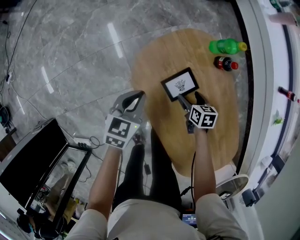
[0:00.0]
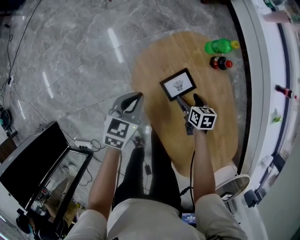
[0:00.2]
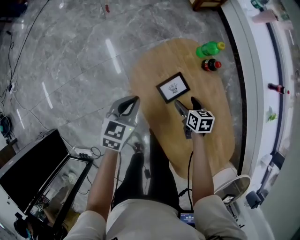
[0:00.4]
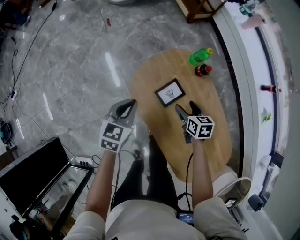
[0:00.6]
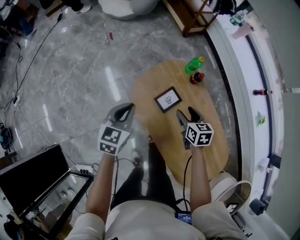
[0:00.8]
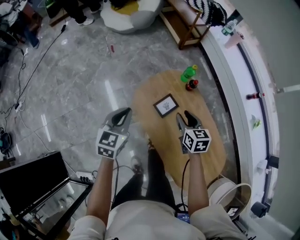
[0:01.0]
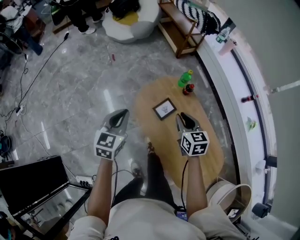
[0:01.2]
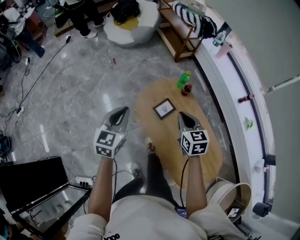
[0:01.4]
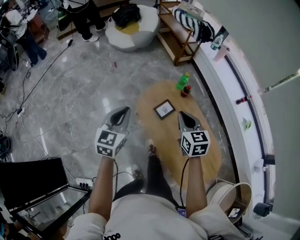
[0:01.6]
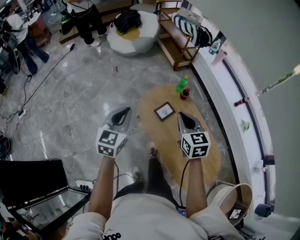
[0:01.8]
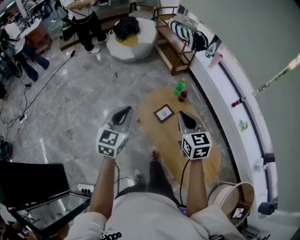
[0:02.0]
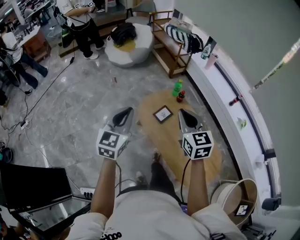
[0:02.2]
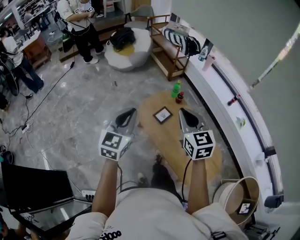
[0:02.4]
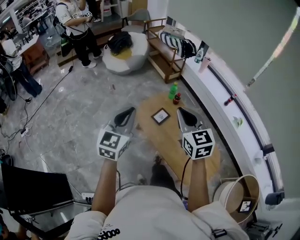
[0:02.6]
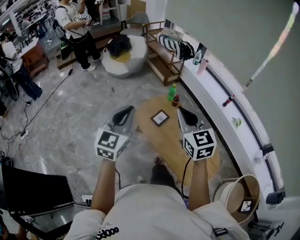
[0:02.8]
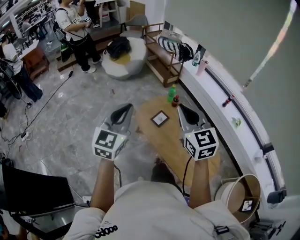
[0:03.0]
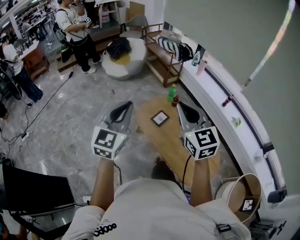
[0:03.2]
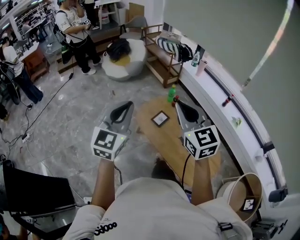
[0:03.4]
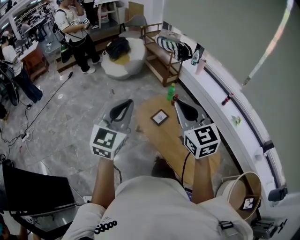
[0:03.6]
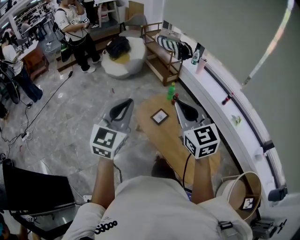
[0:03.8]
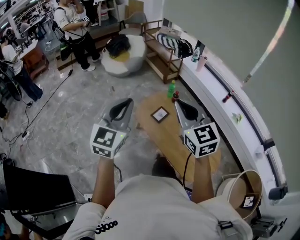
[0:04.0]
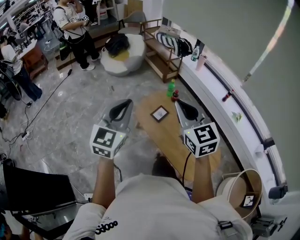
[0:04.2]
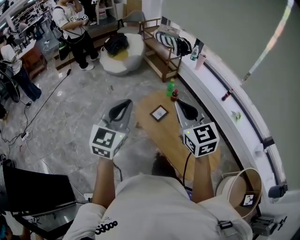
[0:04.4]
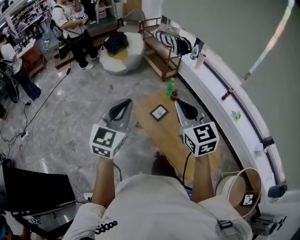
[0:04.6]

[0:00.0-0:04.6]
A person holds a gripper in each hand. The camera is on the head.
0:00.0 to 0:01.6: The two grippers go approximately 40 cm upward. The right gripper changes its angle by approximately 40 degrees, and closes its fingers. The left gripper changes its angle by approximately 30 degrees.
0:01.6 to 0:03.0: The two grippers go roughly 25 cm upward and backward. The right gripper swivels about 20 degrees; the left gripper rotates some 20 degrees.
0:03.0 to 0:04.6: There are only small adjustments of the grippers.

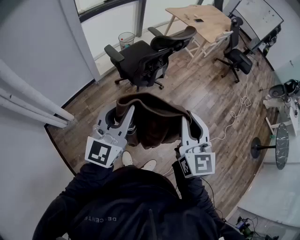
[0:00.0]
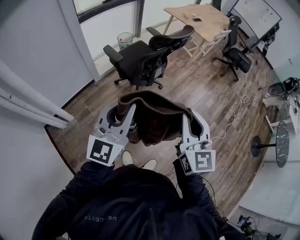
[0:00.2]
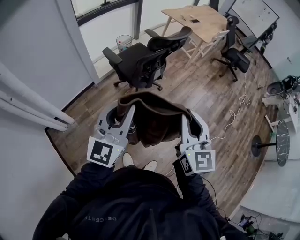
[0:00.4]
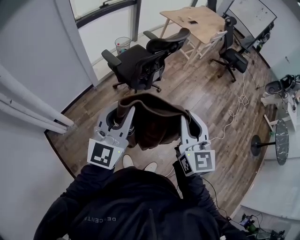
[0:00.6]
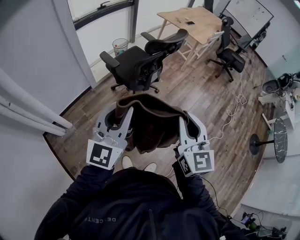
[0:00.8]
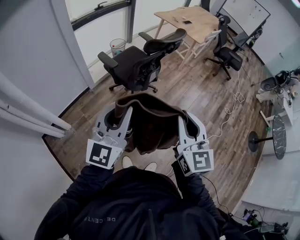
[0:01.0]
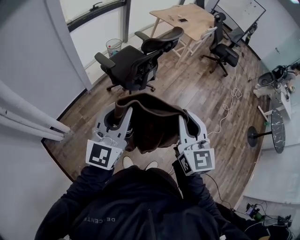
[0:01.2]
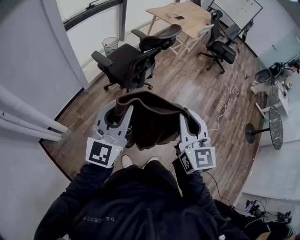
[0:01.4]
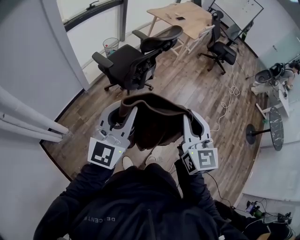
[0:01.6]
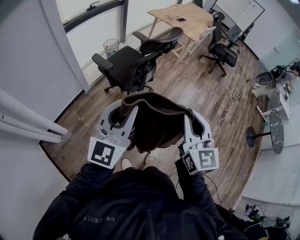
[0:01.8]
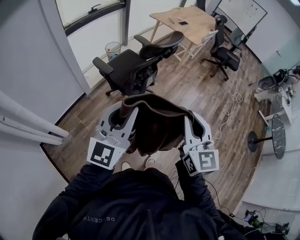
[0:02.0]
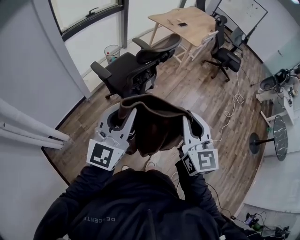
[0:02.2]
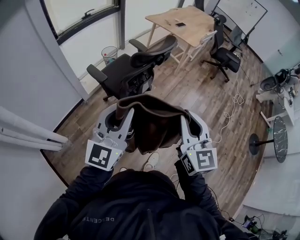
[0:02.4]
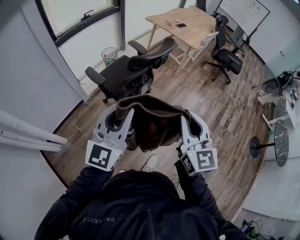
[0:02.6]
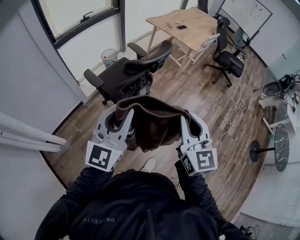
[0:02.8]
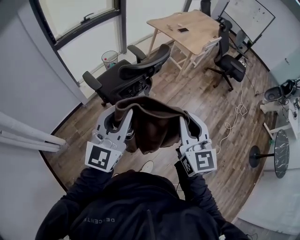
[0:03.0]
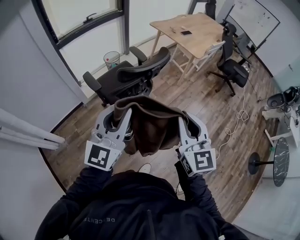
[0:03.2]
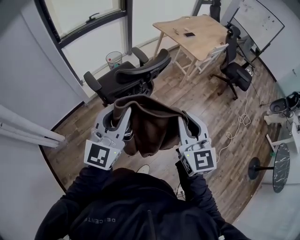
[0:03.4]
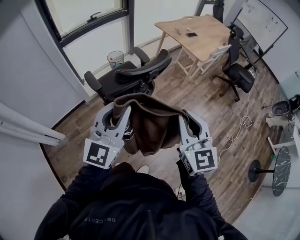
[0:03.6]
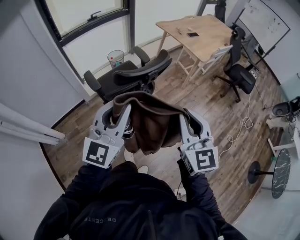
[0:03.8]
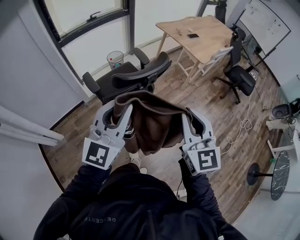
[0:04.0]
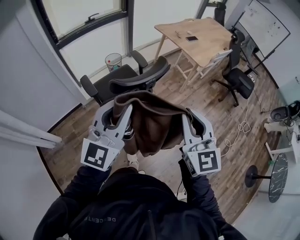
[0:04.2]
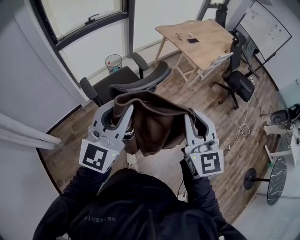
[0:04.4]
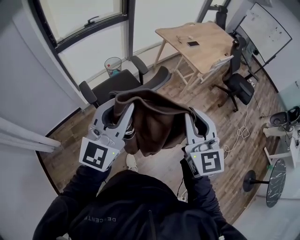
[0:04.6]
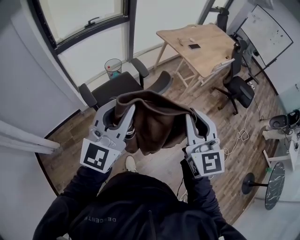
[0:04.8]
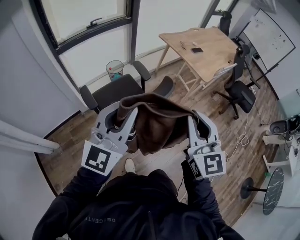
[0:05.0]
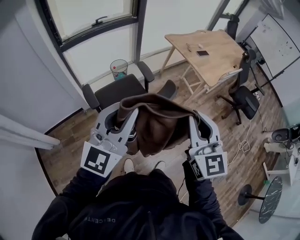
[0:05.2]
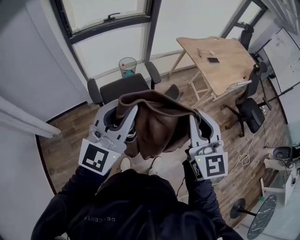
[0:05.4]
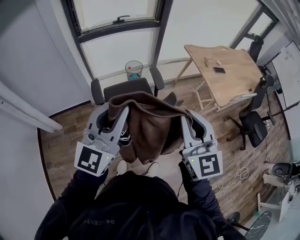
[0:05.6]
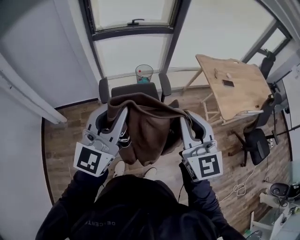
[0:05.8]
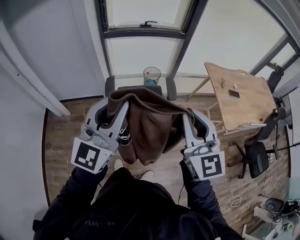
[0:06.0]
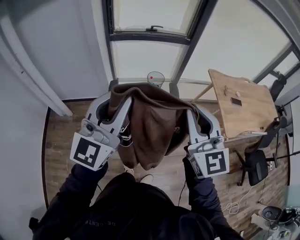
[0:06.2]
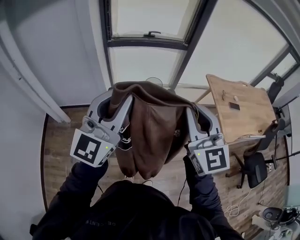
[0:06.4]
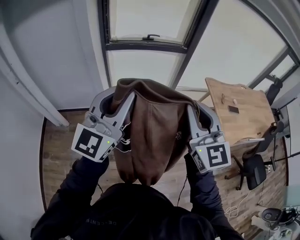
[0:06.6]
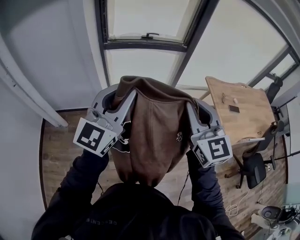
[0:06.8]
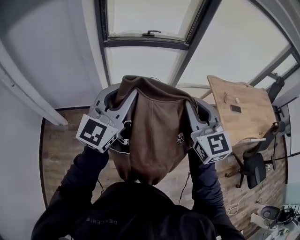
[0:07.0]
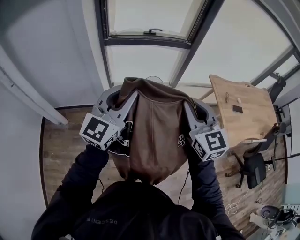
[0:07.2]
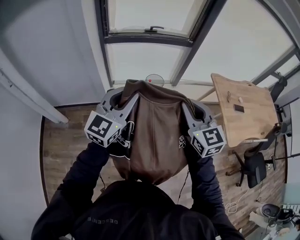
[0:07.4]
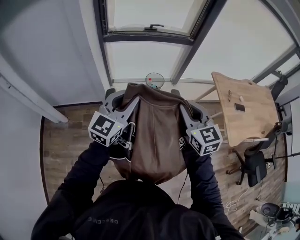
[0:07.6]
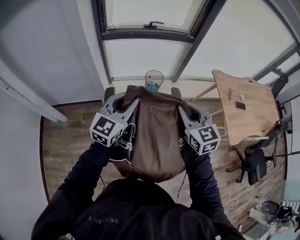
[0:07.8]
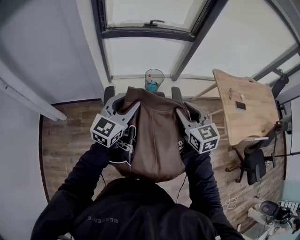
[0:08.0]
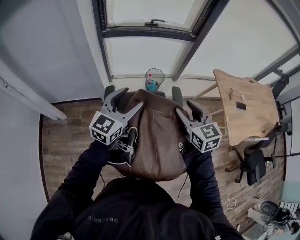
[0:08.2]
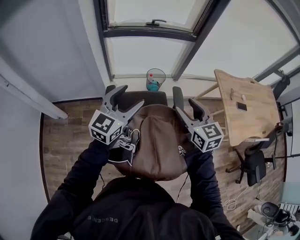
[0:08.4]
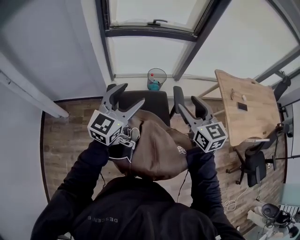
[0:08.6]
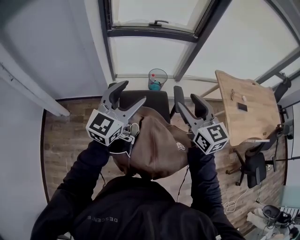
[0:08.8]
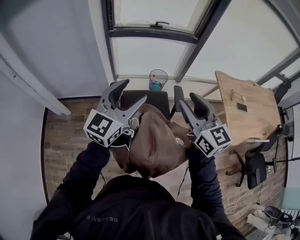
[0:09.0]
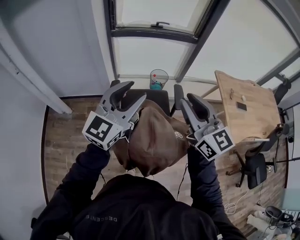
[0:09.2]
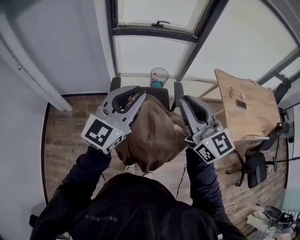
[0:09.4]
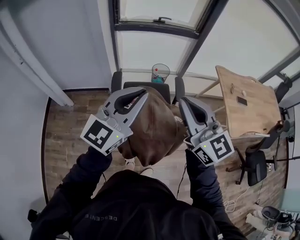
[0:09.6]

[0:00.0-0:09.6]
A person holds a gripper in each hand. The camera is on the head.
0:00.0 to 0:01.6: The grippers move only a little.
0:01.6 to 0:03.2: The grippers both shift forward and to the right by approximately 30 cm.
0:03.2 to 0:04.8: The grippers both shift forward by about 20 cm.
0:04.8 to 0:06.4: The right gripper changes place by some 25 cm, and rotates some 40 degrees, while the left gripper changes place by some 15 cm, and turns by approximately 30 degrees.
0:06.4 to 0:08.0: The right gripper moves forward and downward, approximately 25 cm, swivels about 30 degrees, and opens up. Meanwhile the left gripper travels downward and forward by about 30 cm, and rotates roughly 30 degrees.
0:08.0 to 0:09.6: The grippers both shift backward and upward by some 25 cm. The left gripper closes up. Meanwhile the right gripper changes its angle by about 30 degrees, and closes up.

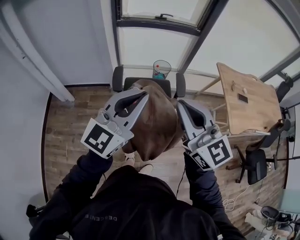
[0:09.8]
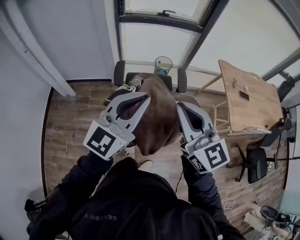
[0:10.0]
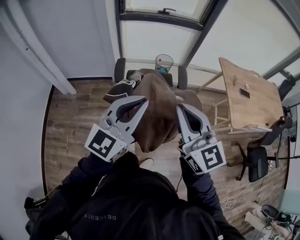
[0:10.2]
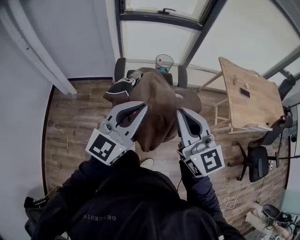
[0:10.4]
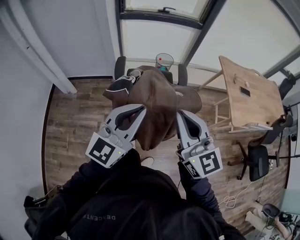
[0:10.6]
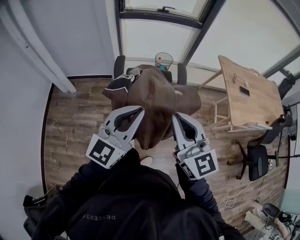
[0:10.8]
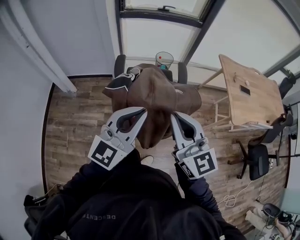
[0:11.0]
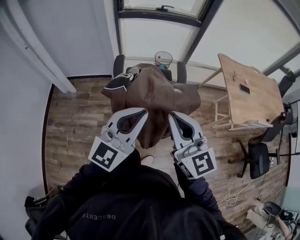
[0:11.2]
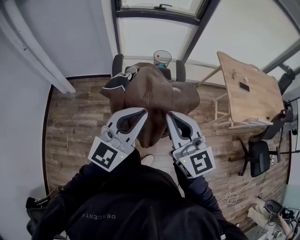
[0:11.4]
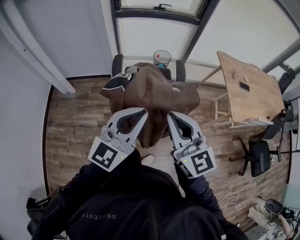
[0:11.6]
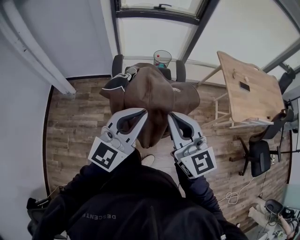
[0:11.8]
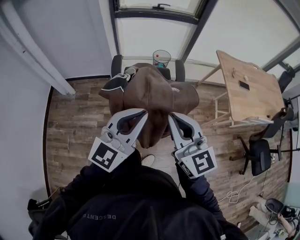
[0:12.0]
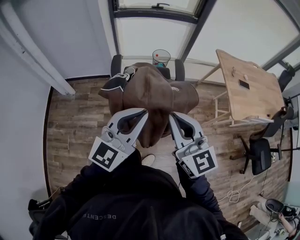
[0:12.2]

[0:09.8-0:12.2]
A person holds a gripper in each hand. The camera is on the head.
0:09.8 to 0:11.0: The grippers both shift backward and downward by approximately 10 cm.
0:11.0 to 0:12.2: The grippers move only a little.

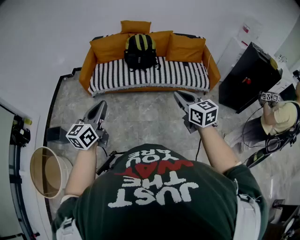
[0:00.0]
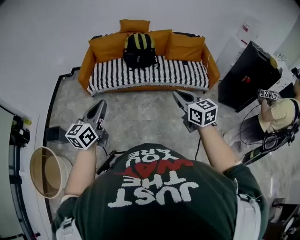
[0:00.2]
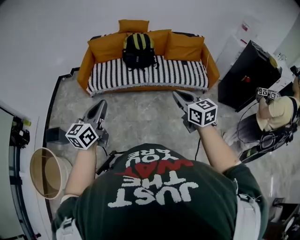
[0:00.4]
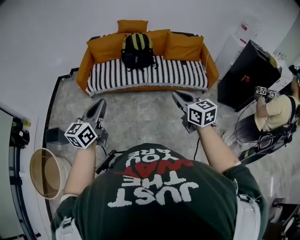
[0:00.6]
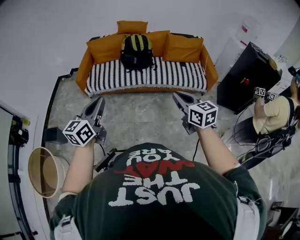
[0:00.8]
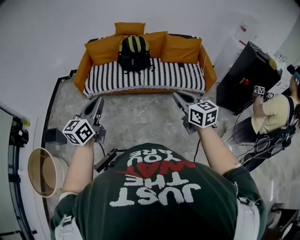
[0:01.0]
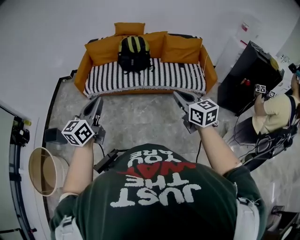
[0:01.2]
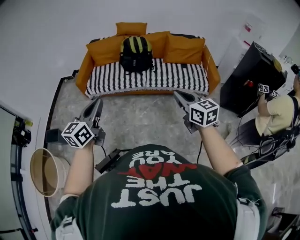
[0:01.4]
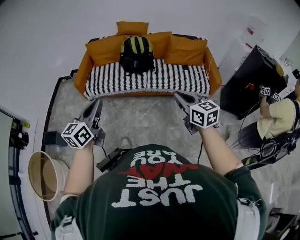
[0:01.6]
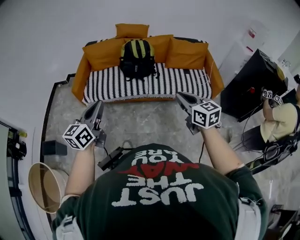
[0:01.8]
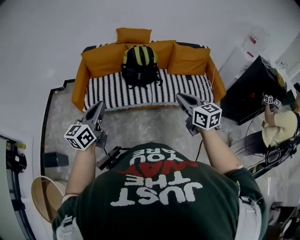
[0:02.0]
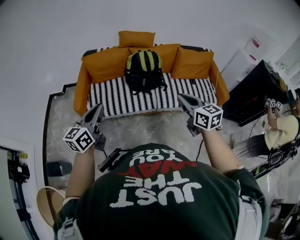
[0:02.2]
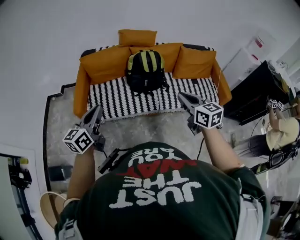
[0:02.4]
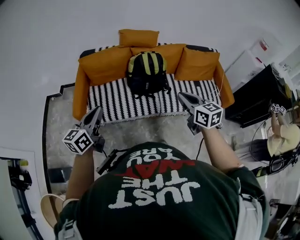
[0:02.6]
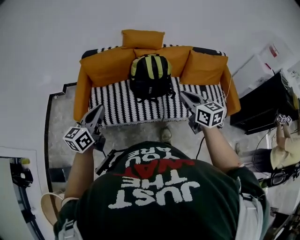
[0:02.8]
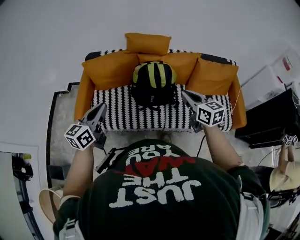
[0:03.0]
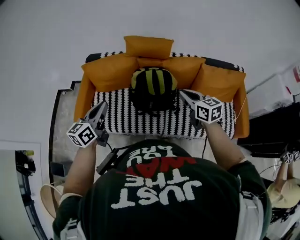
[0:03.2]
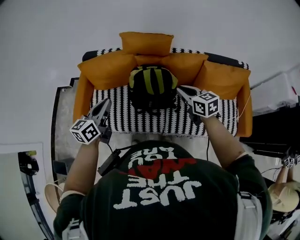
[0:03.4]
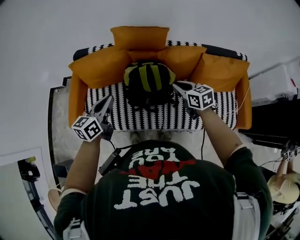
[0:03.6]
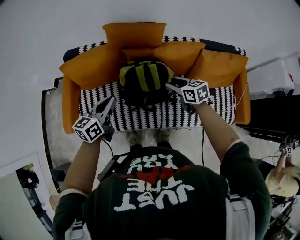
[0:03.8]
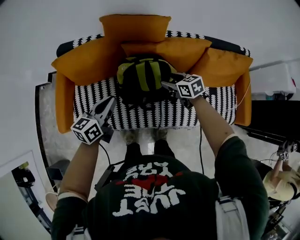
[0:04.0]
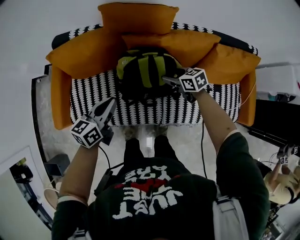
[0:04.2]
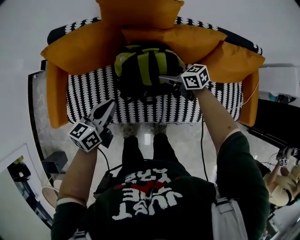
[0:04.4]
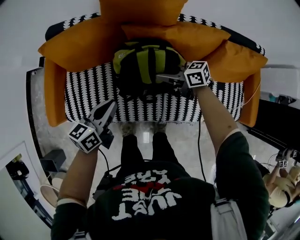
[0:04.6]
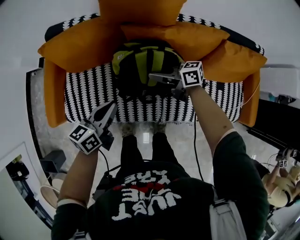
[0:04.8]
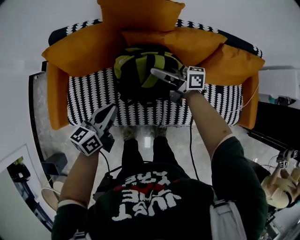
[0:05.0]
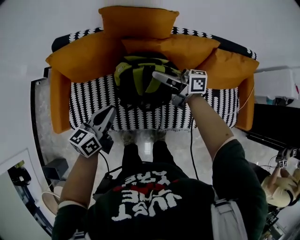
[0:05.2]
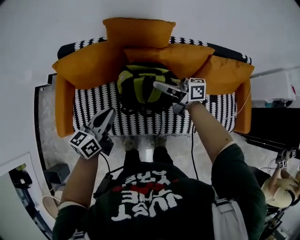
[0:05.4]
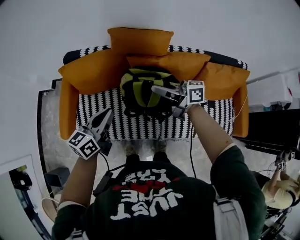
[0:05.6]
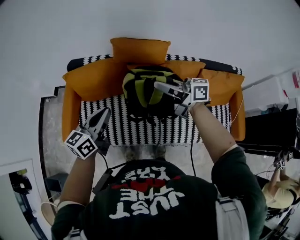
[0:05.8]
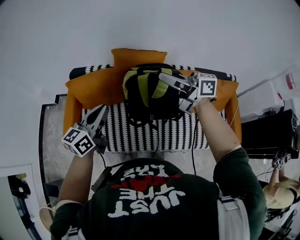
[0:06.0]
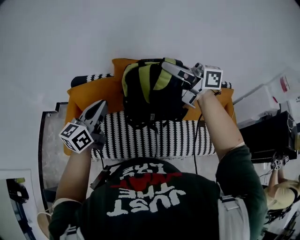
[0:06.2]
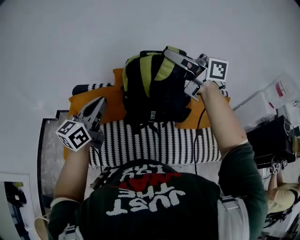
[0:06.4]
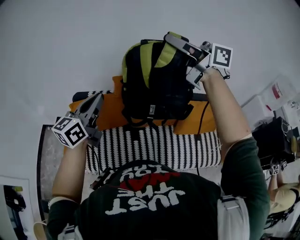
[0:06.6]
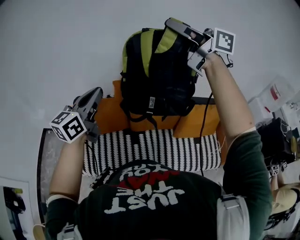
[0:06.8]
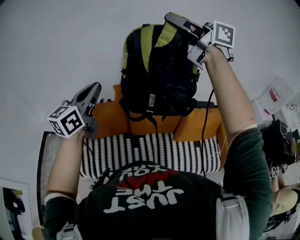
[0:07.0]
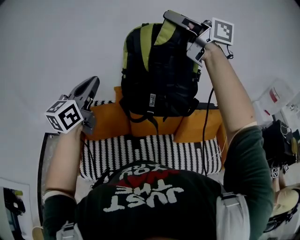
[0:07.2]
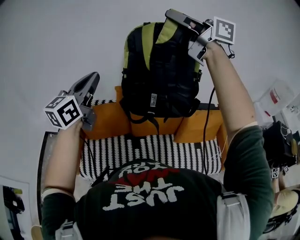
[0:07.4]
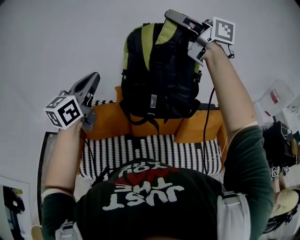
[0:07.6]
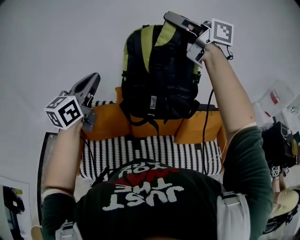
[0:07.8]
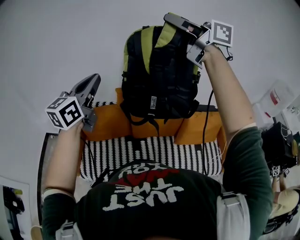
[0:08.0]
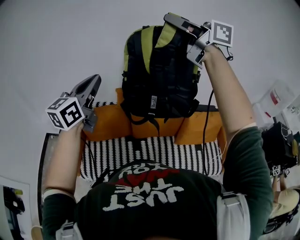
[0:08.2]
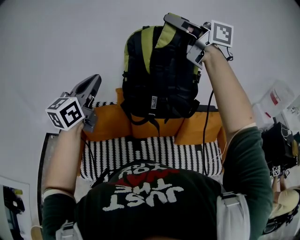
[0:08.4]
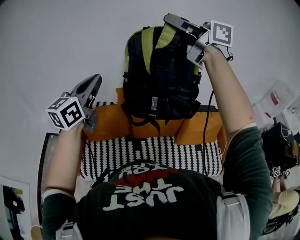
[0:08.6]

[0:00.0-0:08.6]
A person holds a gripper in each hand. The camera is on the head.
0:00.0 to 0:01.4: Both grippers travel together to the right, approximately 10 cm.
0:01.4 to 0:02.8: The pair of grippers is taken forward, approximately 50 cm.
0:02.8 to 0:04.4: The right gripper moves forward and downward, roughly 50 cm, swivels roughly 40 degrees, and opens up; the left gripper is displaced forward, downward and to the right by roughly 35 cm.
0:04.4 to 0:05.8: The left gripper shifts roughly 15 cm upward; the right gripper travels upward by some 30 cm, angles its fingers upward, by approximately 40 degrees, and closes.
0:05.8 to 0:07.2: The left gripper travels upward by about 30 cm, and swivels about 20 degrees. The right gripper shifts about 50 cm upward, and swivels some 30 degrees.
0:07.2 to 0:08.6: There are only small adjustments of the grippers.
